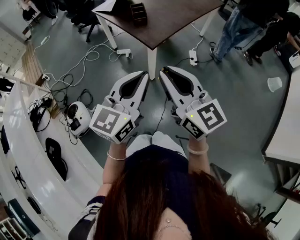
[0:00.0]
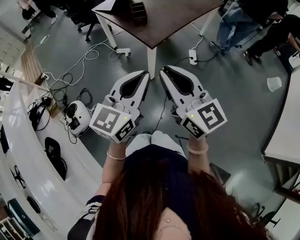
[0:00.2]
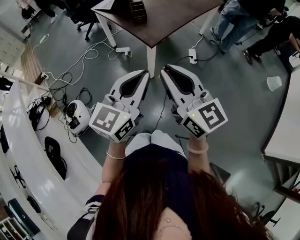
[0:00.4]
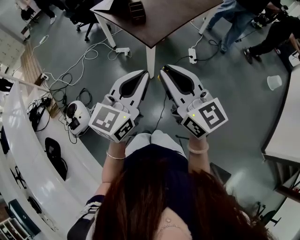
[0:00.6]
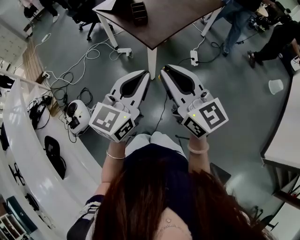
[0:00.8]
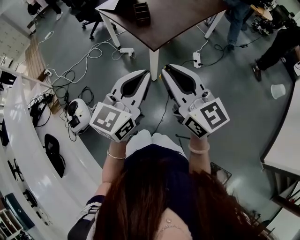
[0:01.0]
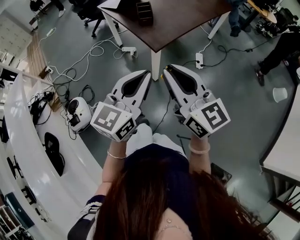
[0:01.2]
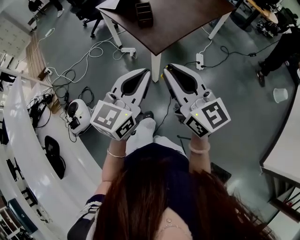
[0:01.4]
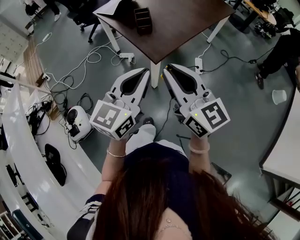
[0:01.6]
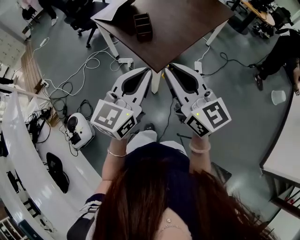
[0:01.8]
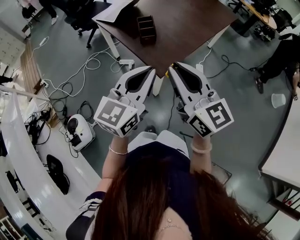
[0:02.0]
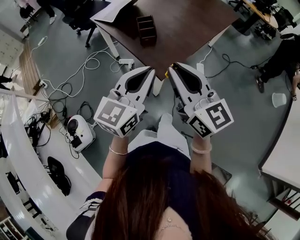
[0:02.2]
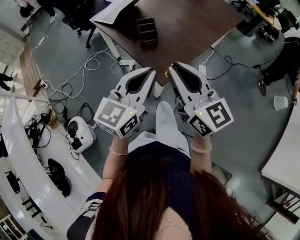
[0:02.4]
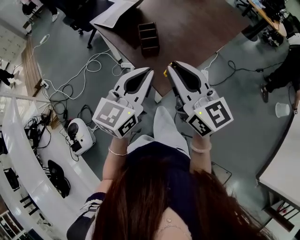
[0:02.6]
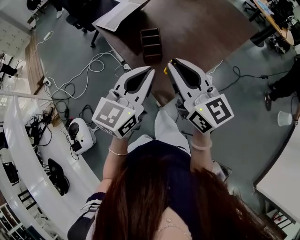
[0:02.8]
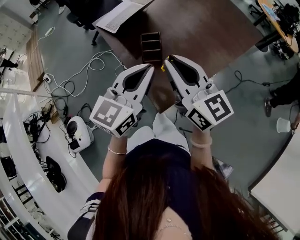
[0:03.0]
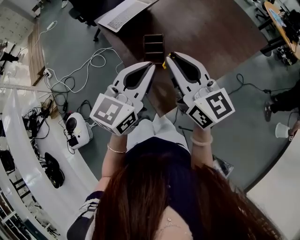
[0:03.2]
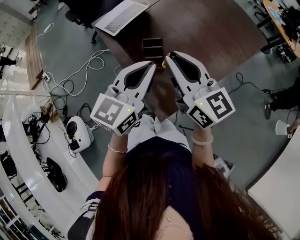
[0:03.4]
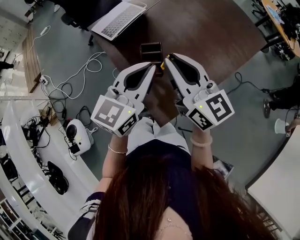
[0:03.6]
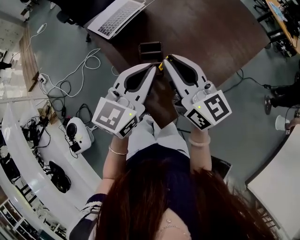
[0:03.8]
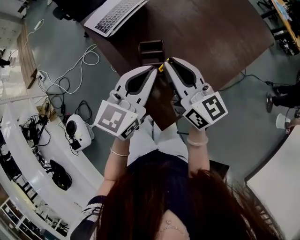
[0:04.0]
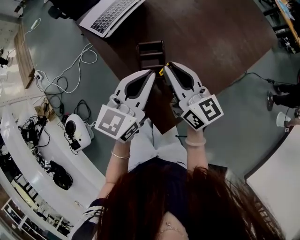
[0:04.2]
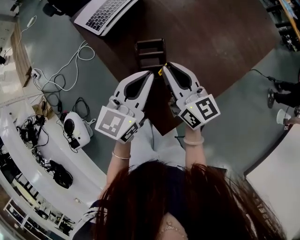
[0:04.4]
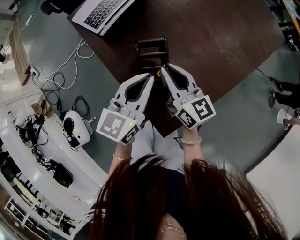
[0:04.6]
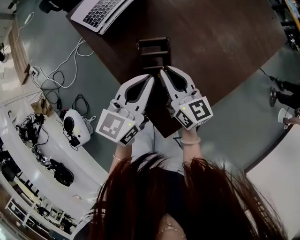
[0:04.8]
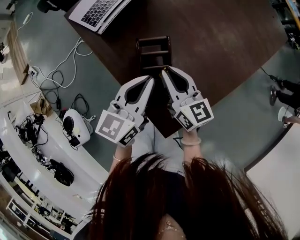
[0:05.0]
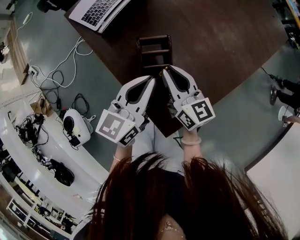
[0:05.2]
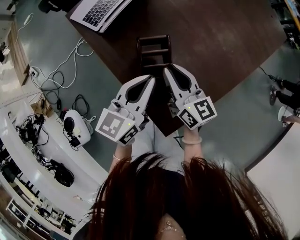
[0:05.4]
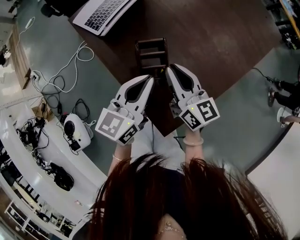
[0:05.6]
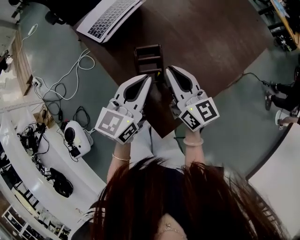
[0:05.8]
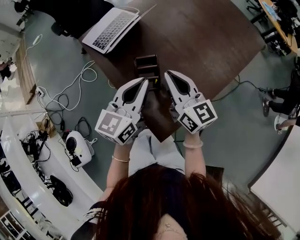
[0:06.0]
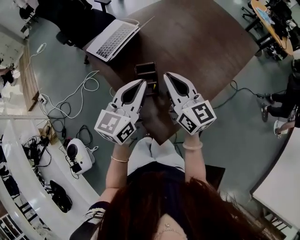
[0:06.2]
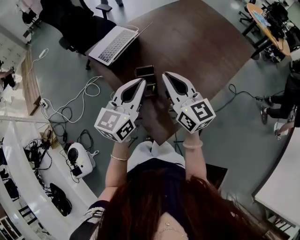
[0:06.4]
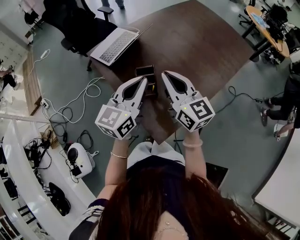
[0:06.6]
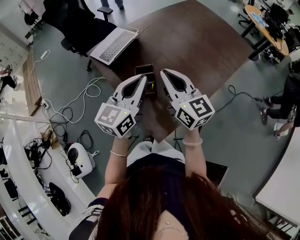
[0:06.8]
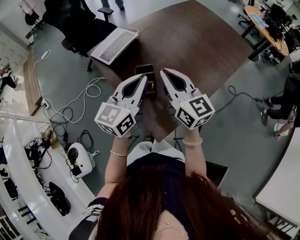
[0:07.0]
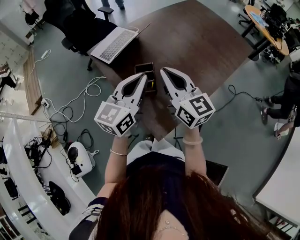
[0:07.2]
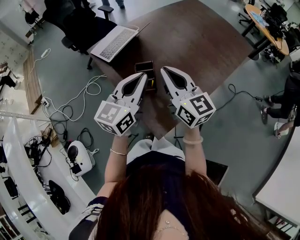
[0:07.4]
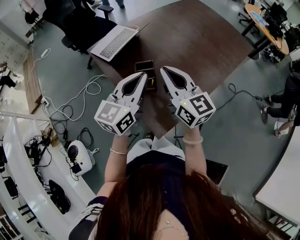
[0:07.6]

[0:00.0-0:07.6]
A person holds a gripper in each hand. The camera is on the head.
0:00.0 to 0:01.6: Both grippers move forward, some 15 cm.
0:01.6 to 0:03.0: Both grippers move forward, some 30 cm.
0:03.0 to 0:04.6: The two grippers go some 25 cm downward and forward.
0:04.6 to 0:06.0: Both grippers travel together upward, about 10 cm.
0:06.0 to 0:07.6: Both grippers move upward, some 10 cm.

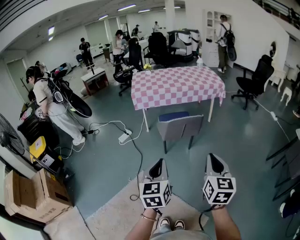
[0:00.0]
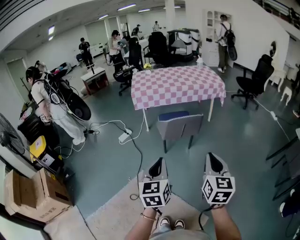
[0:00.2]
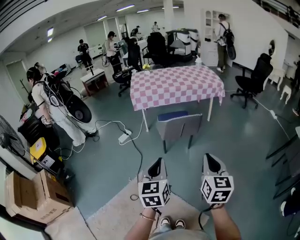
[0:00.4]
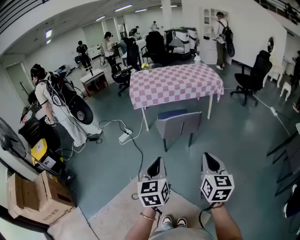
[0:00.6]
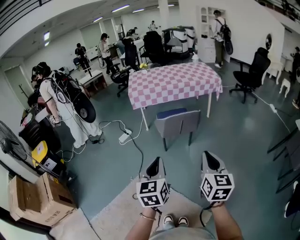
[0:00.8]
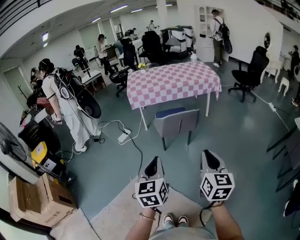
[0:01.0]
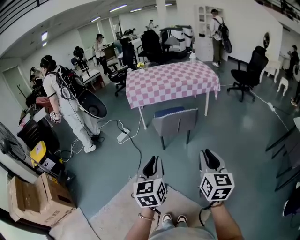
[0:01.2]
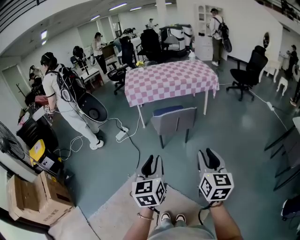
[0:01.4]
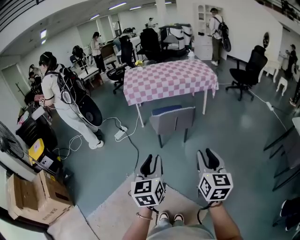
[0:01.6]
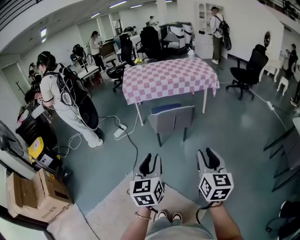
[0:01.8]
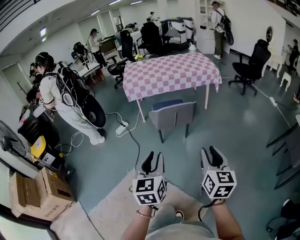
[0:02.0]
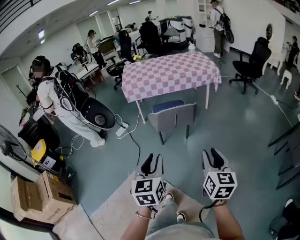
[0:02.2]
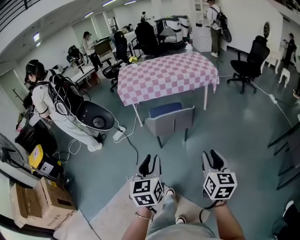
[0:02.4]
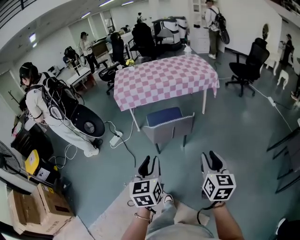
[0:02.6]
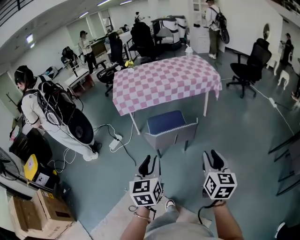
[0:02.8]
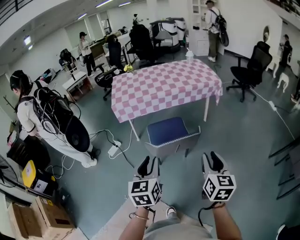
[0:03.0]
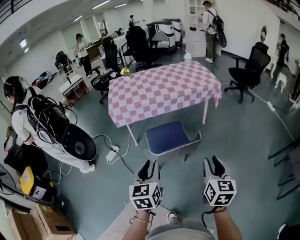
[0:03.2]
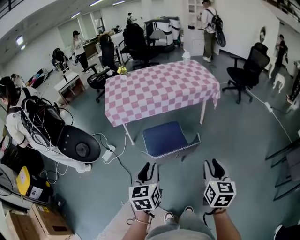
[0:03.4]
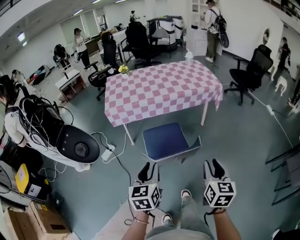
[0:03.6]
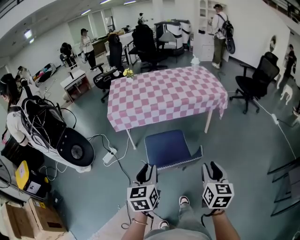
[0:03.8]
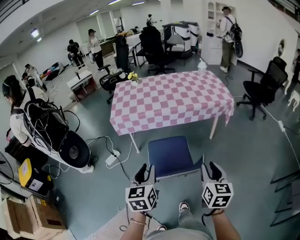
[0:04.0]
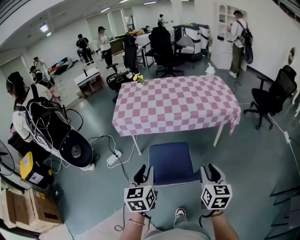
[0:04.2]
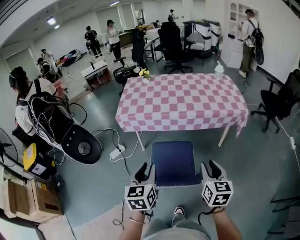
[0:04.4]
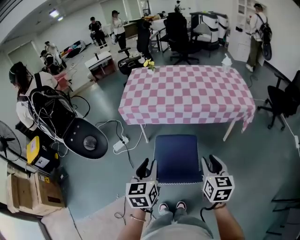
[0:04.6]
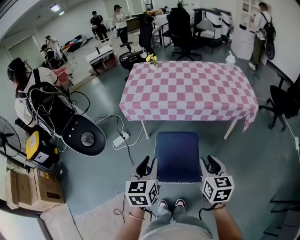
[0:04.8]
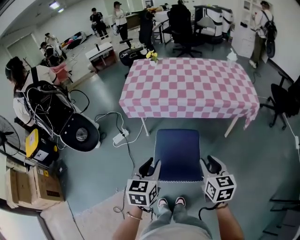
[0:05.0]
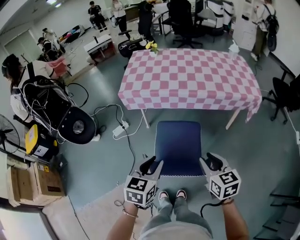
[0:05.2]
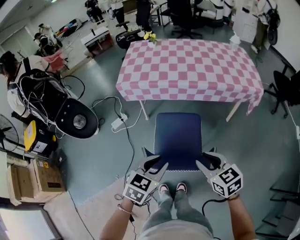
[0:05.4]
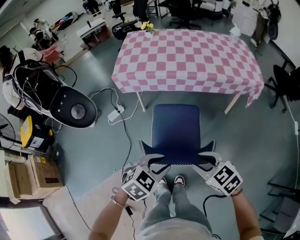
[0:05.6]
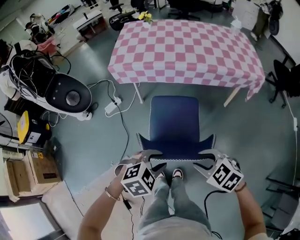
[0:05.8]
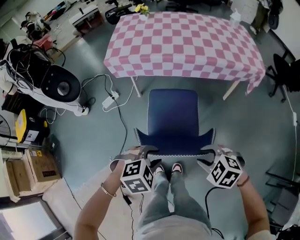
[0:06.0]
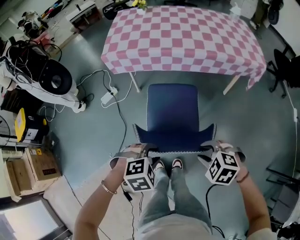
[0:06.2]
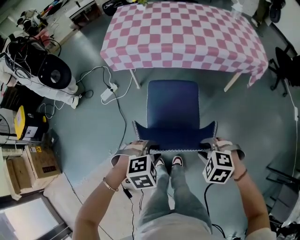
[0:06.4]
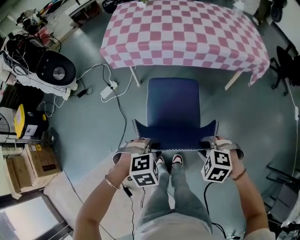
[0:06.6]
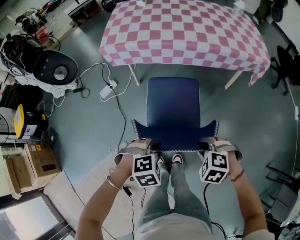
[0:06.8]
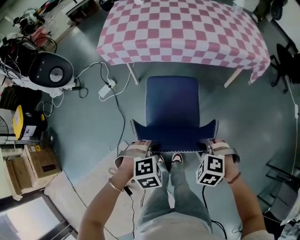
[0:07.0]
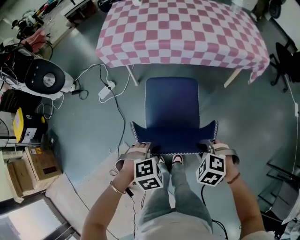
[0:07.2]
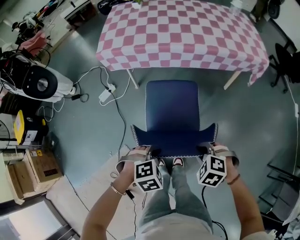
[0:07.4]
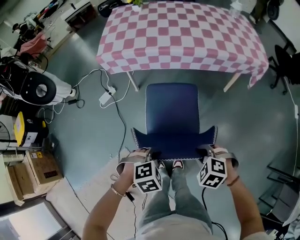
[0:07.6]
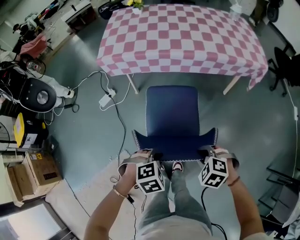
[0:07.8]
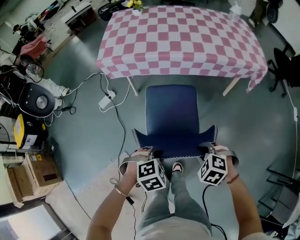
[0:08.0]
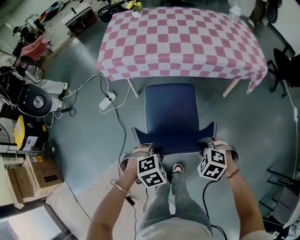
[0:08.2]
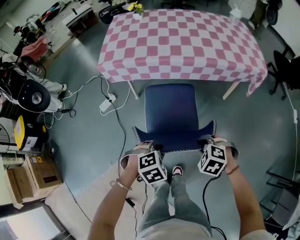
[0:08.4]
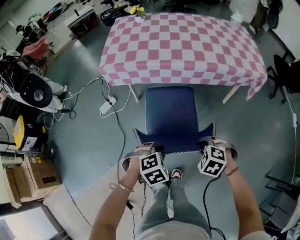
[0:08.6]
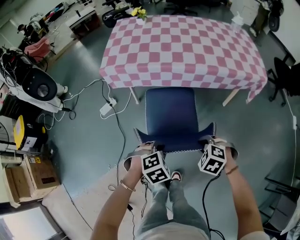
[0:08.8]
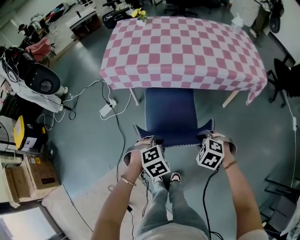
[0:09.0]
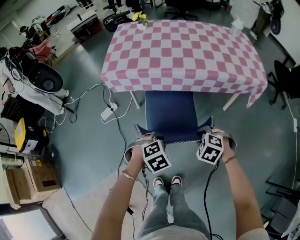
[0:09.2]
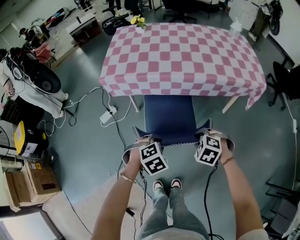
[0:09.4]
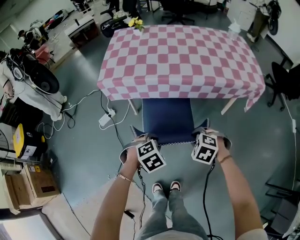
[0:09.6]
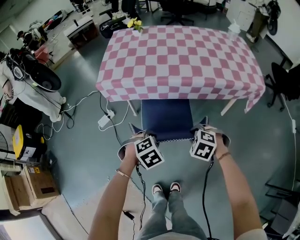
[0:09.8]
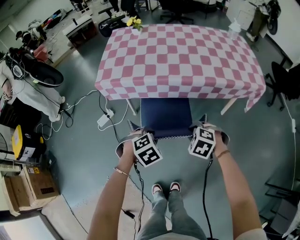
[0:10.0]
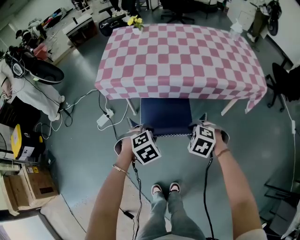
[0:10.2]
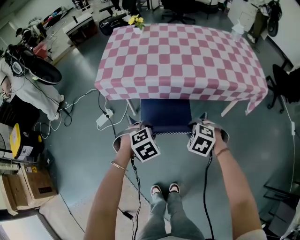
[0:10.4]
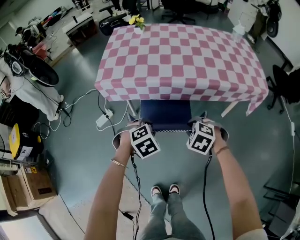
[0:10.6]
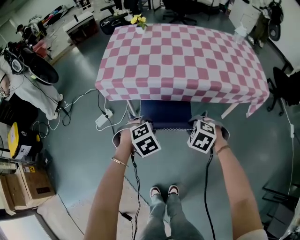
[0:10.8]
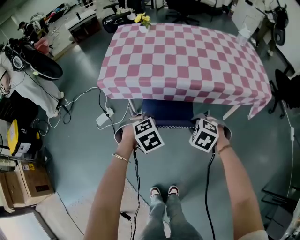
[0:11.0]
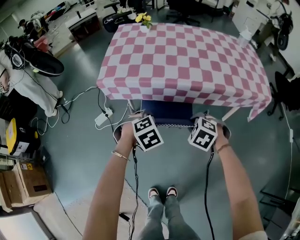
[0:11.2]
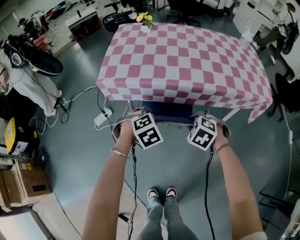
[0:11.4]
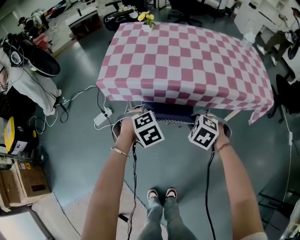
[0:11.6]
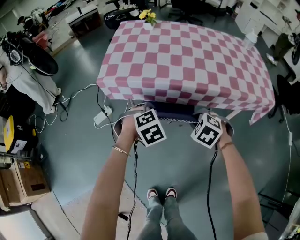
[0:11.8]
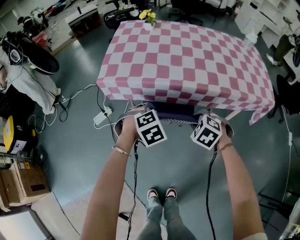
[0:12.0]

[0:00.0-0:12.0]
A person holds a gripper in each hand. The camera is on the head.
0:00.0 to 0:01.6: The left gripper opens. Meanwhile the right gripper opens up.
0:01.6 to 0:03.0: Both grippers travel together forward, approximately 30 cm.
0:03.0 to 0:04.4: Both grippers travel together forward, about 25 cm.
0:04.4 to 0:06.0: The two grippers go about 15 cm downward and backward. The left gripper points its fingers about 40 degrees further downward. Meanwhile the right gripper points its fingers about 40 degrees further downward.
0:06.0 to 0:07.6: The grippers both shift downward by roughly 5 cm.
0:07.6 to 0:09.0: The right gripper shifts by roughly 15 cm, while the left gripper moves about 15 cm.
0:09.0 to 0:10.4: The two grippers go approximately 15 cm forward.
0:10.4 to 0:12.0: The grippers both shift forward by some 10 cm.

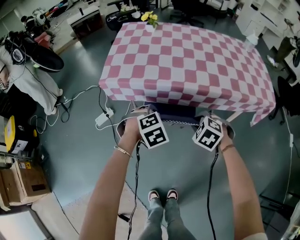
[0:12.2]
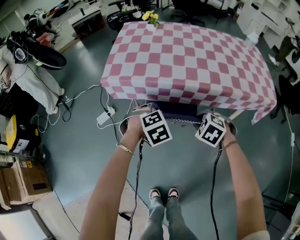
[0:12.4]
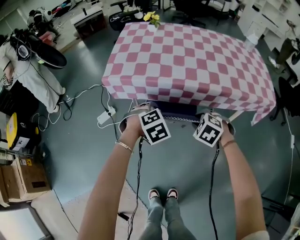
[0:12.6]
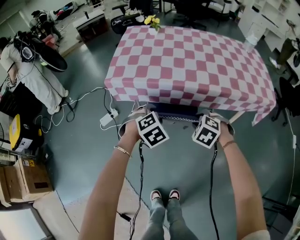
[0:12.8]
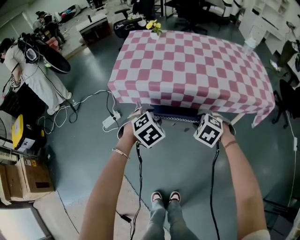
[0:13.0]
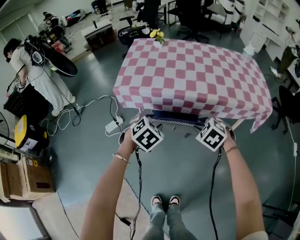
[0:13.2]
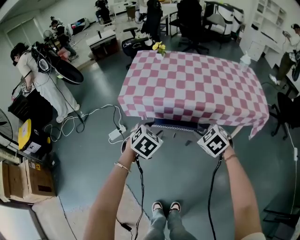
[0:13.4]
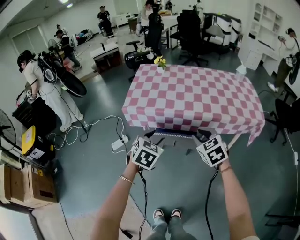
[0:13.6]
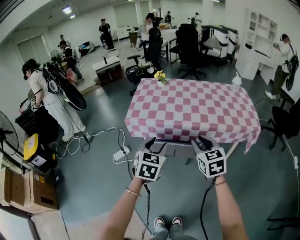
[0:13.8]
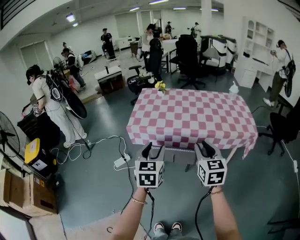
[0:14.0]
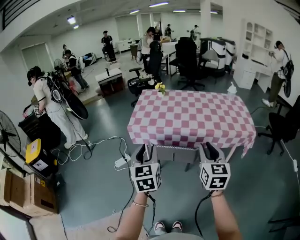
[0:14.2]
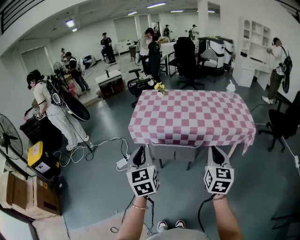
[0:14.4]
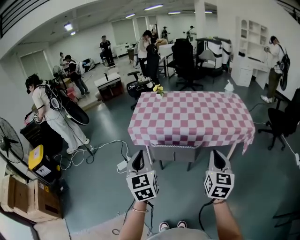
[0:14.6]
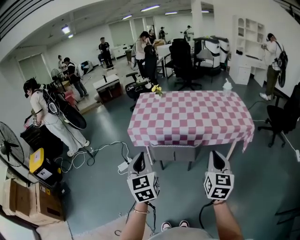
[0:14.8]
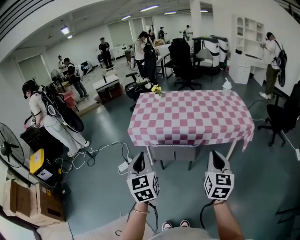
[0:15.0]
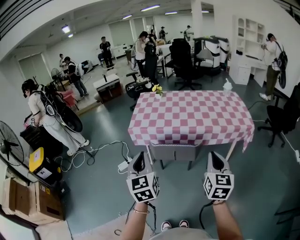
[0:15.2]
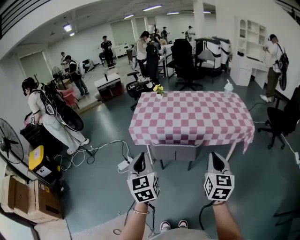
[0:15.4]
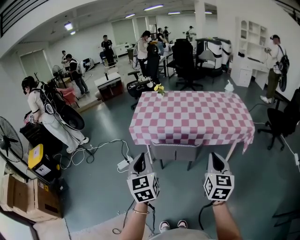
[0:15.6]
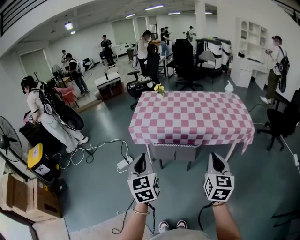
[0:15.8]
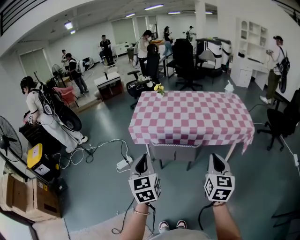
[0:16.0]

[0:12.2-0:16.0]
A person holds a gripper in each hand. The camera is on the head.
0:12.2 to 0:13.4: The right gripper moves upward, about 10 cm, and rotates some 20 degrees. Meanwhile the left gripper travels upward and backward by approximately 15 cm, and turns by about 30 degrees.
0:13.4 to 0:14.8: The left gripper shifts about 25 cm upward and backward, angles its fingers upward, by some 40 degrees, and closes, while the right gripper shifts about 30 cm backward and upward, angles its fingers upward, by roughly 40 degrees, and closes.
0:14.8 to 0:16.0: The grippers move only a little.
